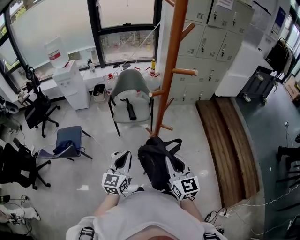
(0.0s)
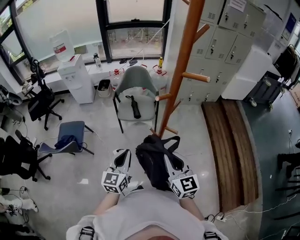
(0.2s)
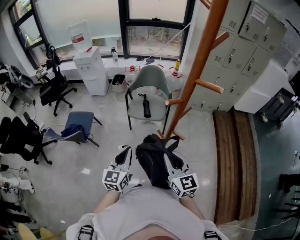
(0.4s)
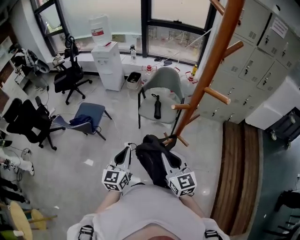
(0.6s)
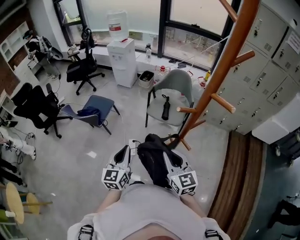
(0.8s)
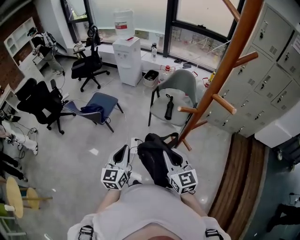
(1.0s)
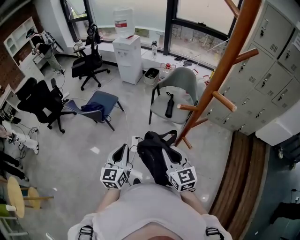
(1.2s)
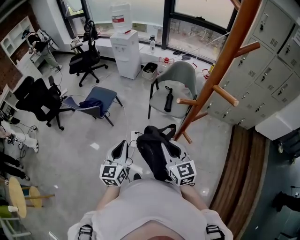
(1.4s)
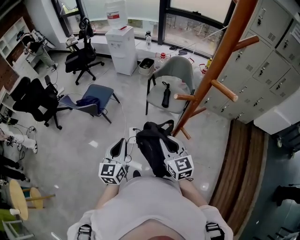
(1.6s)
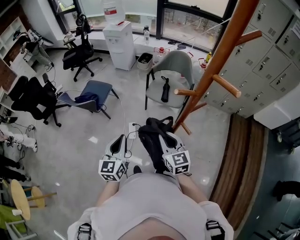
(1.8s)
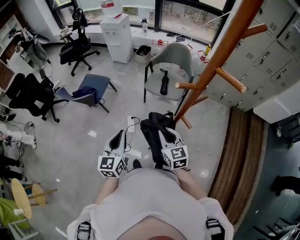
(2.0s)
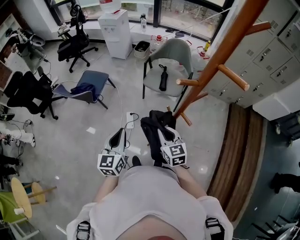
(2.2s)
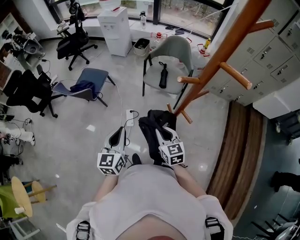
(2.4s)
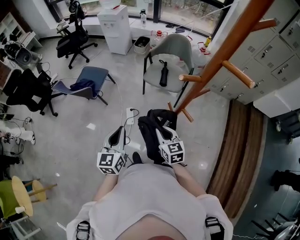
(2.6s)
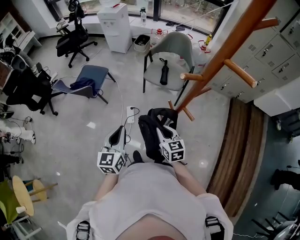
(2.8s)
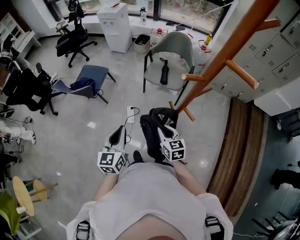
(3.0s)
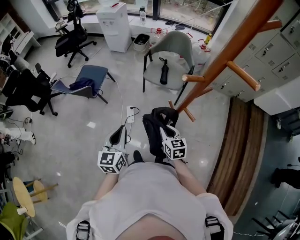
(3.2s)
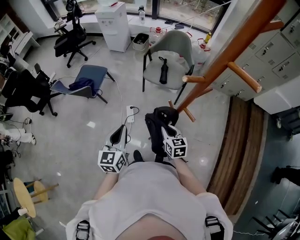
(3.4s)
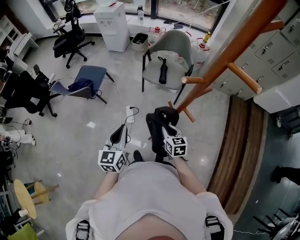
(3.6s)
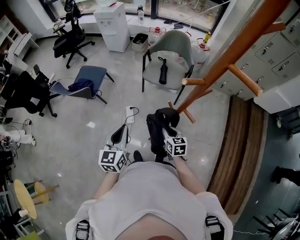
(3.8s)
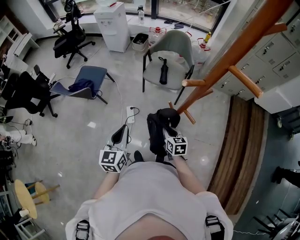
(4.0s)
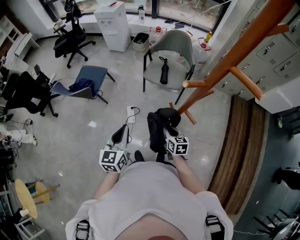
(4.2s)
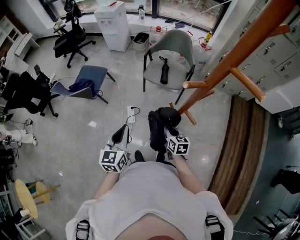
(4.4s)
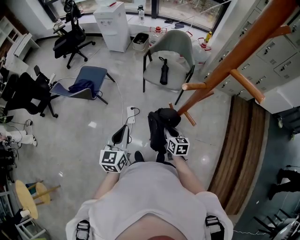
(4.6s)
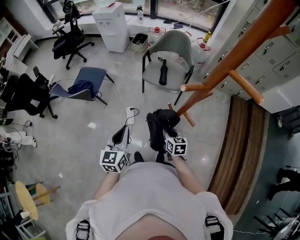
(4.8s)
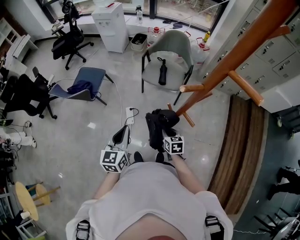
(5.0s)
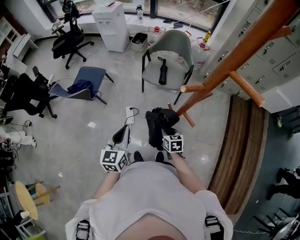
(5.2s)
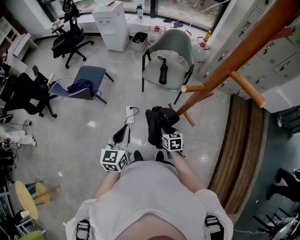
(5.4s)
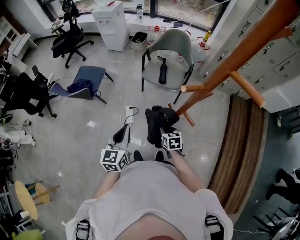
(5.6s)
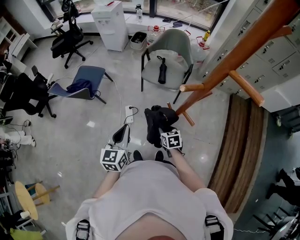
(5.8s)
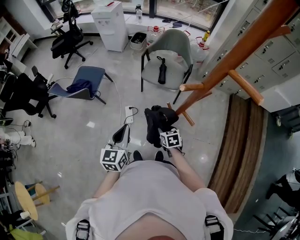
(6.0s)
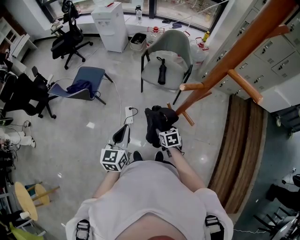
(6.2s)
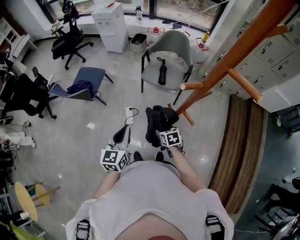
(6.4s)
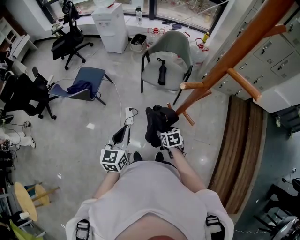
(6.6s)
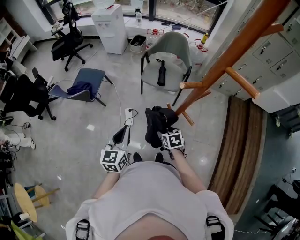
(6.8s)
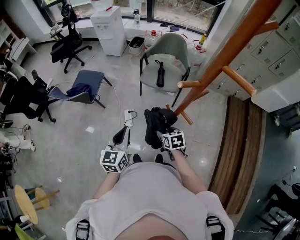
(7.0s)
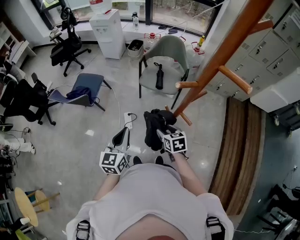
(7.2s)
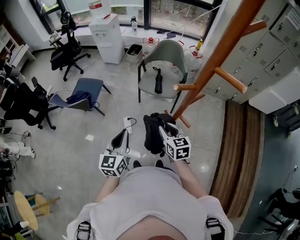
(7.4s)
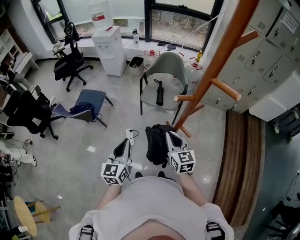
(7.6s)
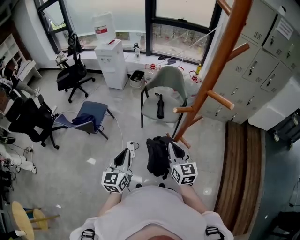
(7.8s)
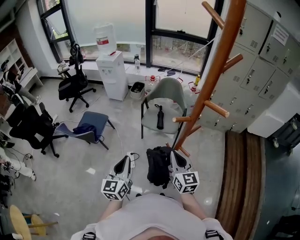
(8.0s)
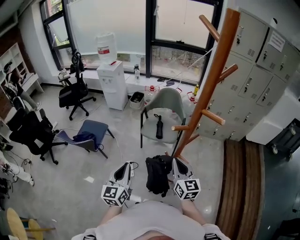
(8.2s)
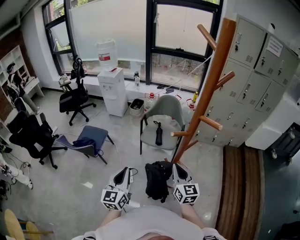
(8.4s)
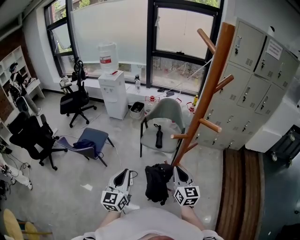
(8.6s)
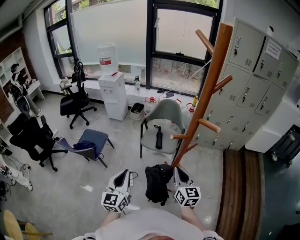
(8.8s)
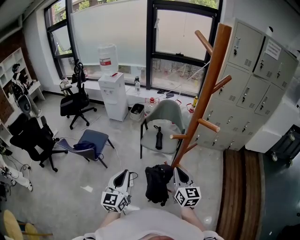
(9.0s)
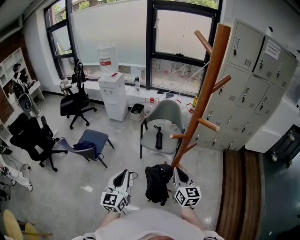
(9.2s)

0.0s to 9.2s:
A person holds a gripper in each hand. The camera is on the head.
0.0s to 1.6s: The left gripper moves roughly 5 cm, and rotates some 40 degrees, while the right gripper moves some 15 cm, and turns by about 40 degrees.
1.6s to 3.0s: The right gripper is displaced downward by approximately 15 cm.
3.0s to 4.6s: The right gripper travels downward by about 10 cm.
4.6s to 6.2s: The right gripper rotates roughly 20 degrees, and opens up.
6.2s to 7.6s: The right gripper shifts some 20 cm upward, tips its fingers upward by about 40 degrees, and closes.
7.6s to 9.2s: The two grippers go roughly 5 cm upward.

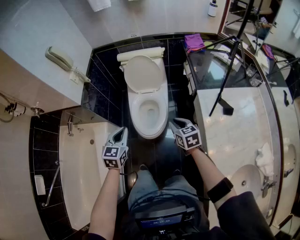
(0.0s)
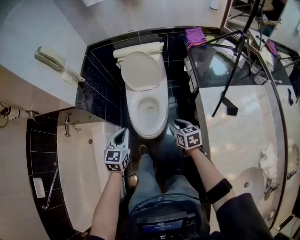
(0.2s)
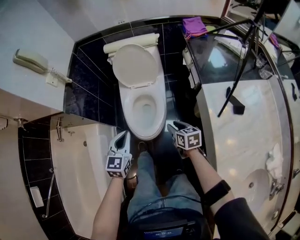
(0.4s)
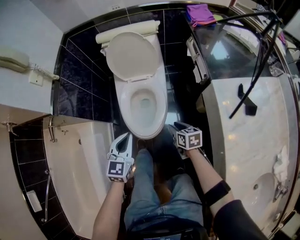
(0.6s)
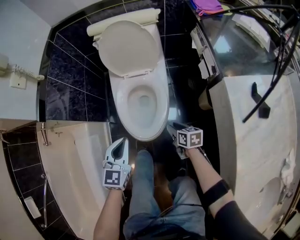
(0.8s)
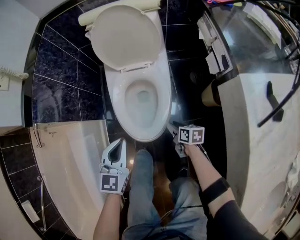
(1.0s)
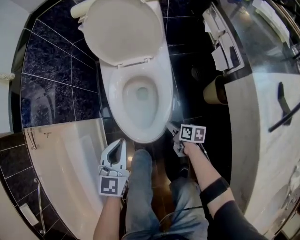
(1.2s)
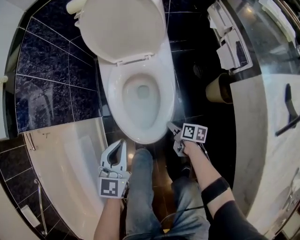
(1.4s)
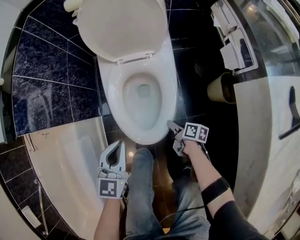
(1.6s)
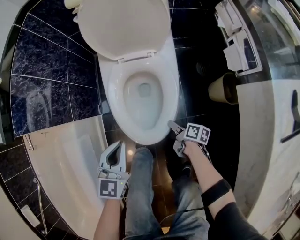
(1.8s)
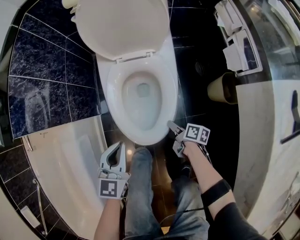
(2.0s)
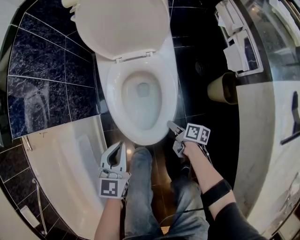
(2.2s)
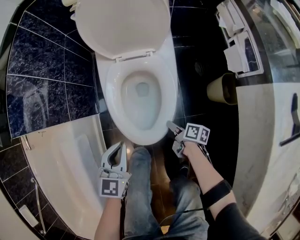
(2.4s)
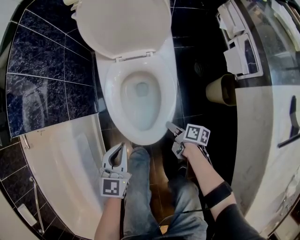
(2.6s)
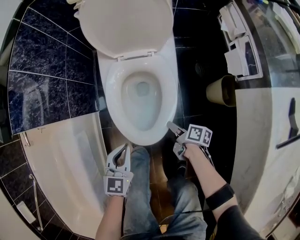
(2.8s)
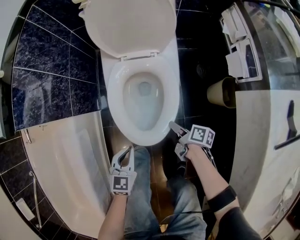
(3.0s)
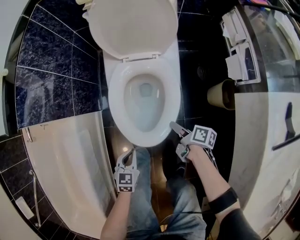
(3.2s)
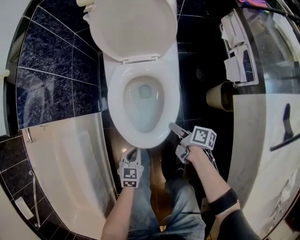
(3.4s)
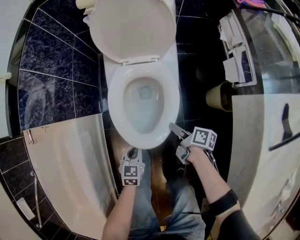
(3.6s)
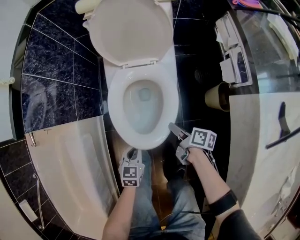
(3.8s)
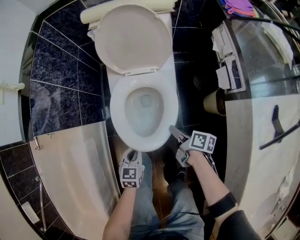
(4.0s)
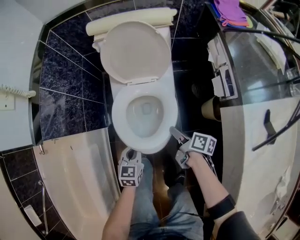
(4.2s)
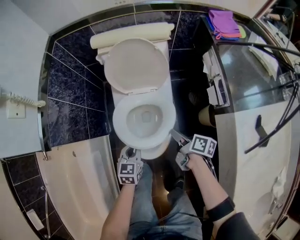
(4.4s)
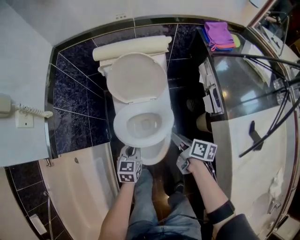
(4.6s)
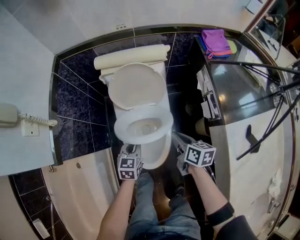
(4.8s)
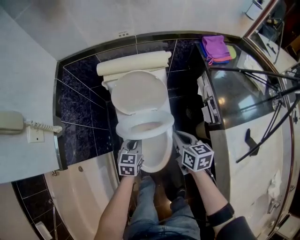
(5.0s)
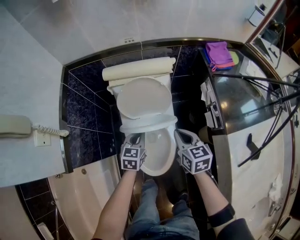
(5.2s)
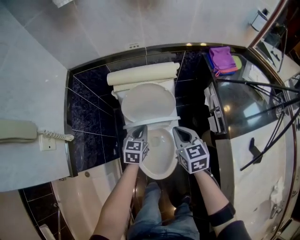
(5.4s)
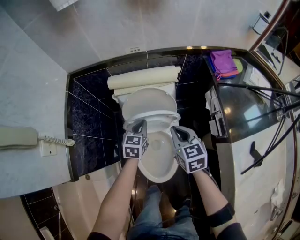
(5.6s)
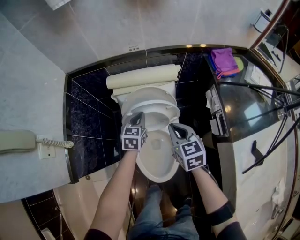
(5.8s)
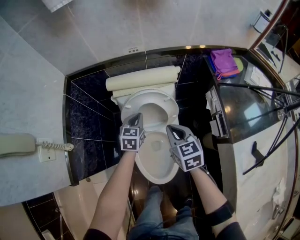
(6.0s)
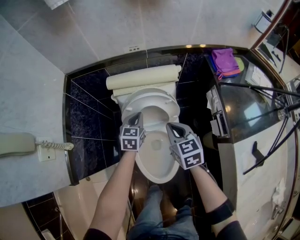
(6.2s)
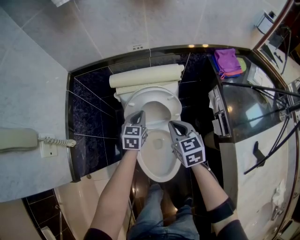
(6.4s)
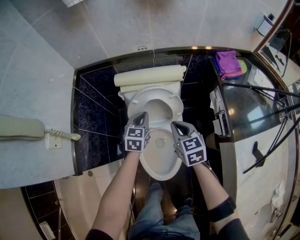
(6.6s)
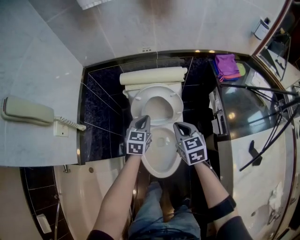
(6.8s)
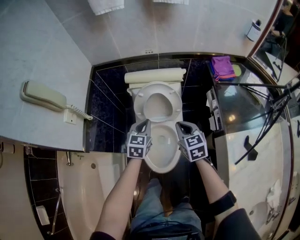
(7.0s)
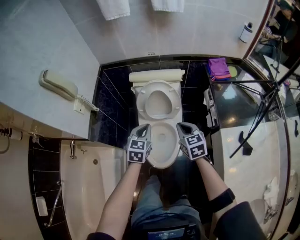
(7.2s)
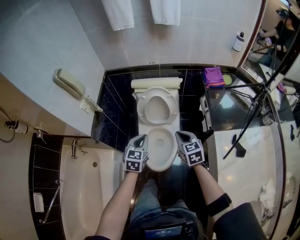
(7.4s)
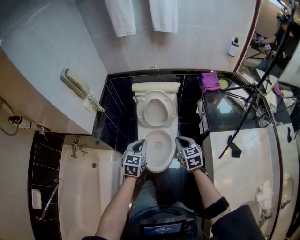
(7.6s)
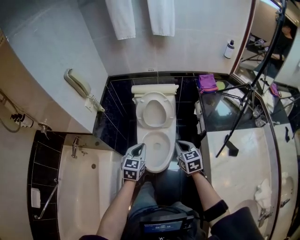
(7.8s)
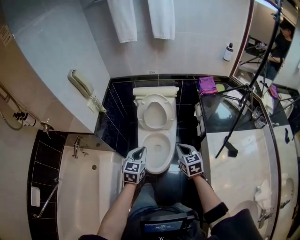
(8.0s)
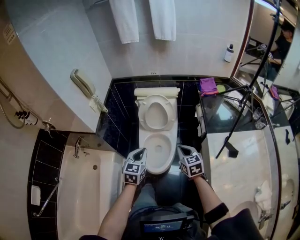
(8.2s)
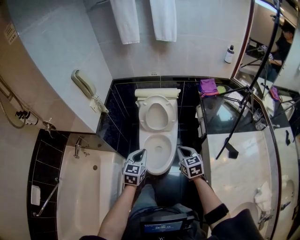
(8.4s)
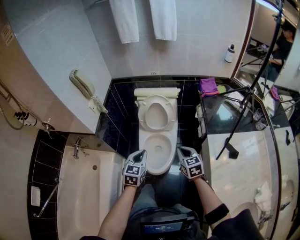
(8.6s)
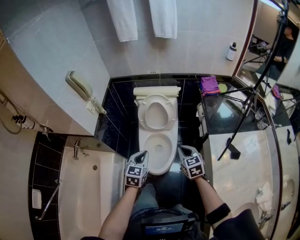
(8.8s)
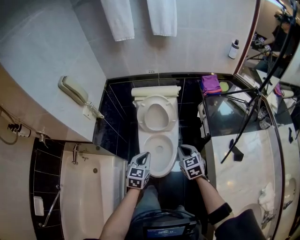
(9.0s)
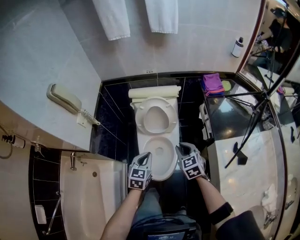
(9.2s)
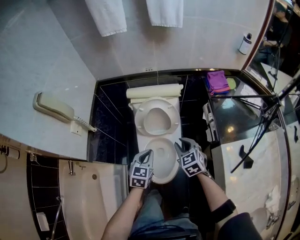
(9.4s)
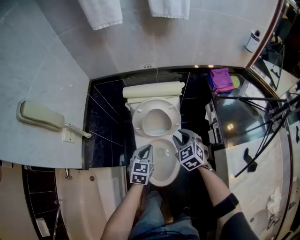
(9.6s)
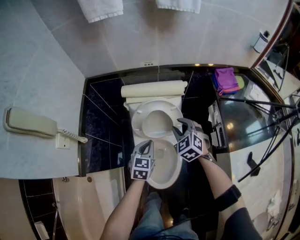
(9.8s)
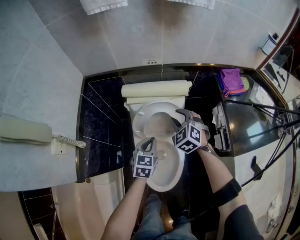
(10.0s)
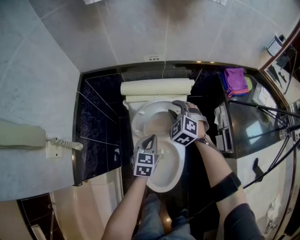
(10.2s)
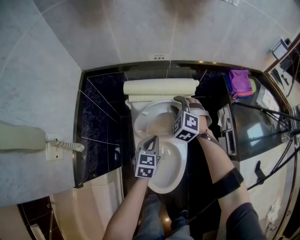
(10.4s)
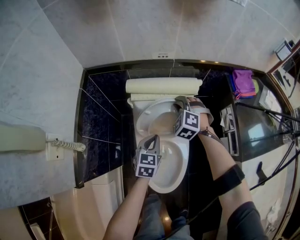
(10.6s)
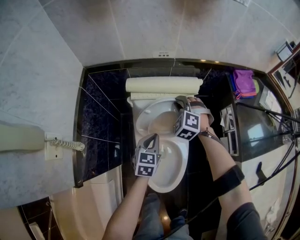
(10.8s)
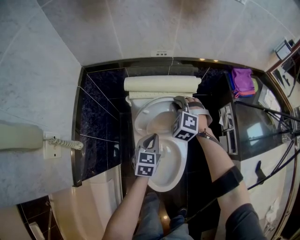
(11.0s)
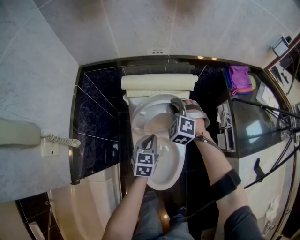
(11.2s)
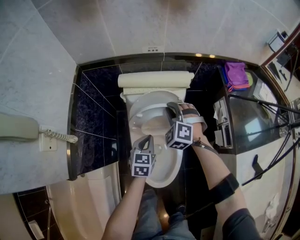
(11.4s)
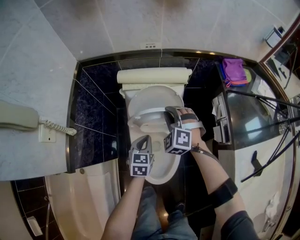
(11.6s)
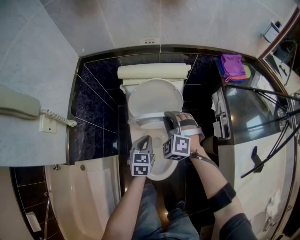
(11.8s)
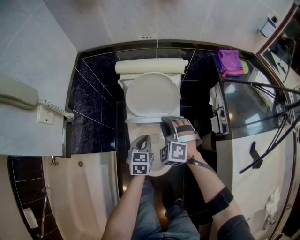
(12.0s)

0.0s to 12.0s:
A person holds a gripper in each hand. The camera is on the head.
0.0s to 1.6s: The left gripper is displaced downward by some 35 cm; the right gripper moves downward, about 50 cm, and rotates around the line of its fingers by about 60 degrees, clockwise from behind.
1.6s to 3.0s: The right gripper is displaced upward by approximately 5 cm. Meanwhile the left gripper heads downward and backward, covering approximately 10 cm.
3.0s to 4.4s: The right gripper goes approximately 20 cm upward. The left gripper travels forward and upward by roughly 15 cm.
4.4s to 6.0s: The right gripper is displaced forward and upward by about 30 cm, rolls counterclockwise, seen from behind, by some 60 degrees, and closes its fingers, while the left gripper shifts some 30 cm forward.
6.0s to 7.6s: The left gripper is displaced backward and upward by roughly 40 cm. The right gripper travels backward and upward by roughly 25 cm.
7.6s to 9.0s: The left gripper goes backward and returns, approximately 10 cm each way.
9.0s to 10.4s: The left gripper travels forward and downward by some 35 cm. The right gripper moves forward, roughly 40 cm, rotates around the line of its fingers by about 40 degrees, counterclockwise from behind, and opens its fingers.
10.4s to 12.0s: The left gripper is displaced backward by approximately 10 cm, while the right gripper is displaced backward by approximately 20 cm.

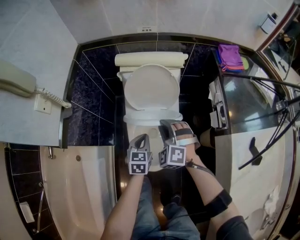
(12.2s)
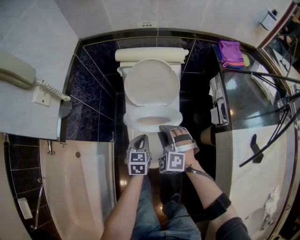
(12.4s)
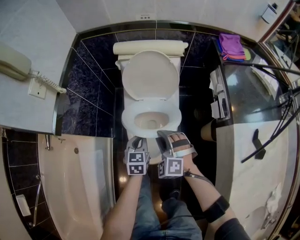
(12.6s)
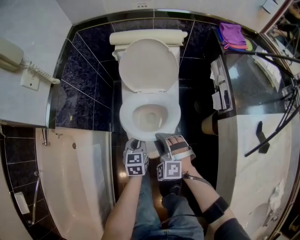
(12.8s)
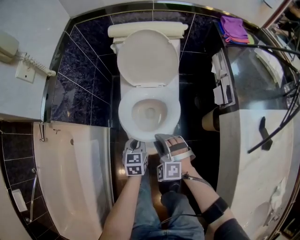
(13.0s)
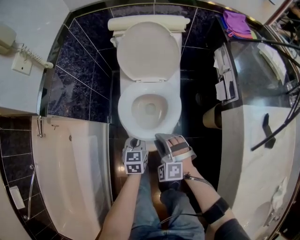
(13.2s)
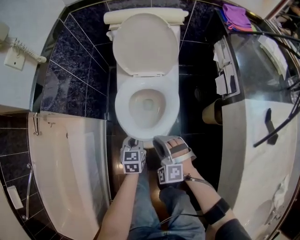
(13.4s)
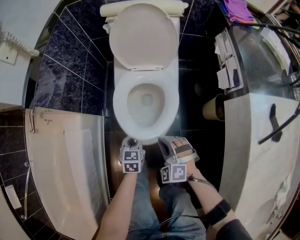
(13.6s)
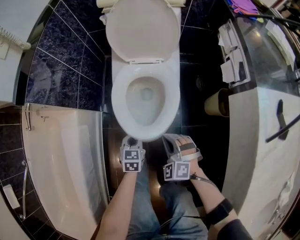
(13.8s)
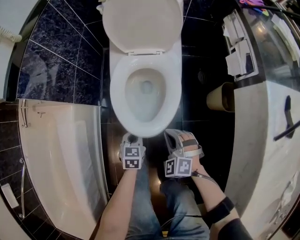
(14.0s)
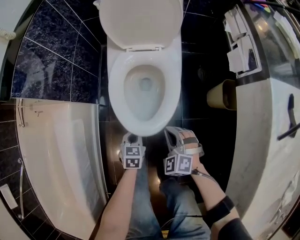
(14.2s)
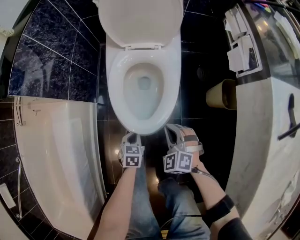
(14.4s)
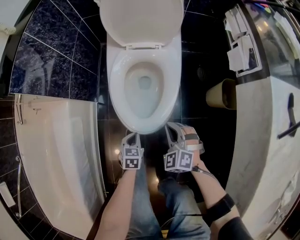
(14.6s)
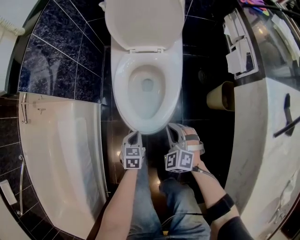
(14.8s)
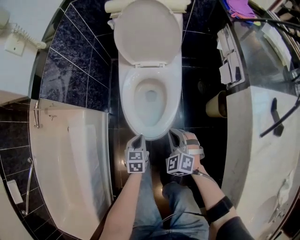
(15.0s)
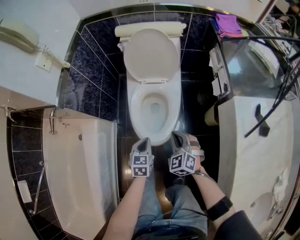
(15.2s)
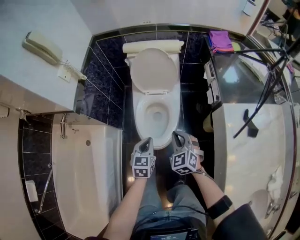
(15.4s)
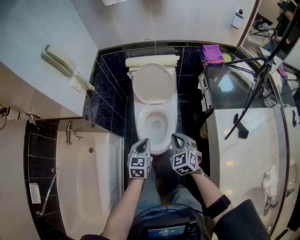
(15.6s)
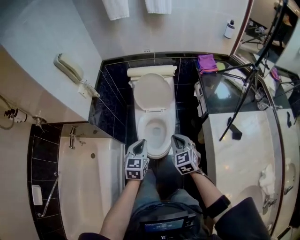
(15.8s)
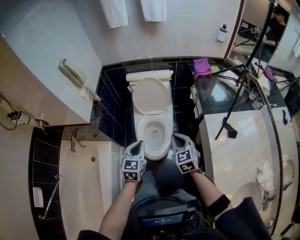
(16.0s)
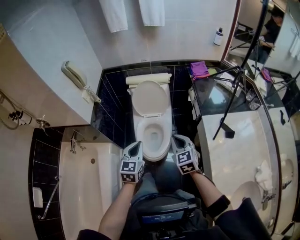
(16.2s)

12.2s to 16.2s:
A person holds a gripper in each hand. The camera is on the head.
12.2s to 13.6s: The right gripper shifts some 30 cm backward and downward, while the left gripper moves downward and backward, some 25 cm.
13.6s to 14.8s: The right gripper heads downward, covering roughly 10 cm. Meanwhile the left gripper goes roughly 10 cm downward and backward.
14.8s to 16.2s: The two grippers go some 60 cm upward. The right gripper swivels roughly 40 degrees. The left gripper swivels about 30 degrees.
